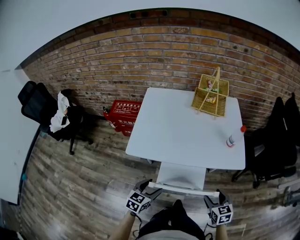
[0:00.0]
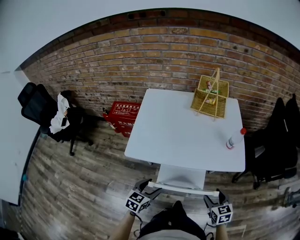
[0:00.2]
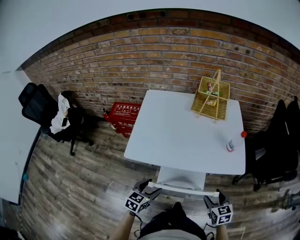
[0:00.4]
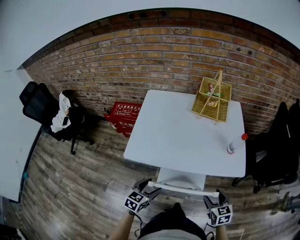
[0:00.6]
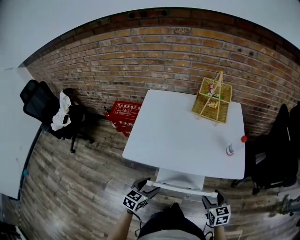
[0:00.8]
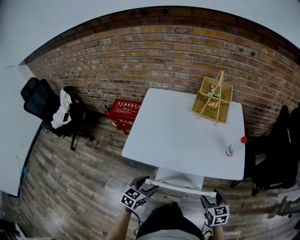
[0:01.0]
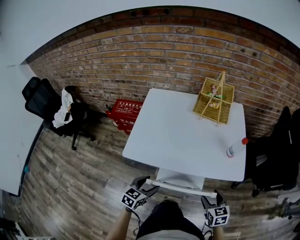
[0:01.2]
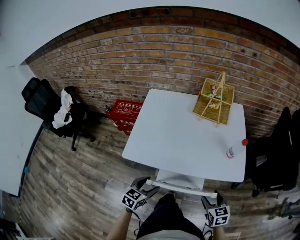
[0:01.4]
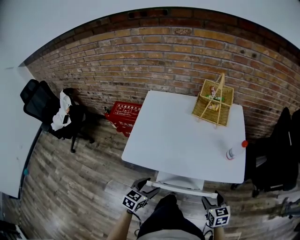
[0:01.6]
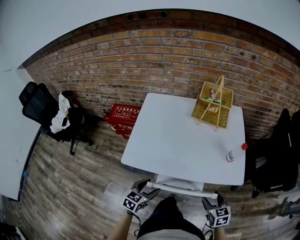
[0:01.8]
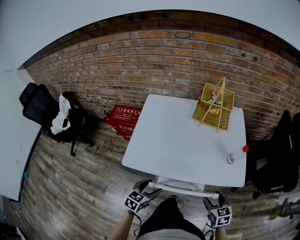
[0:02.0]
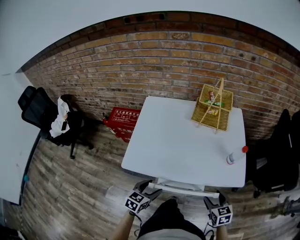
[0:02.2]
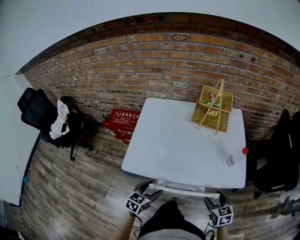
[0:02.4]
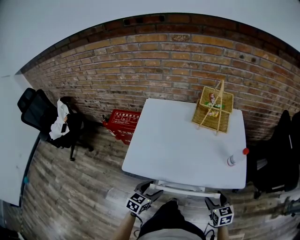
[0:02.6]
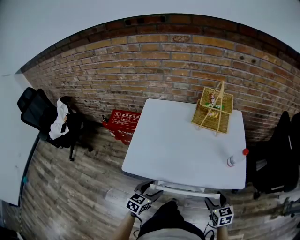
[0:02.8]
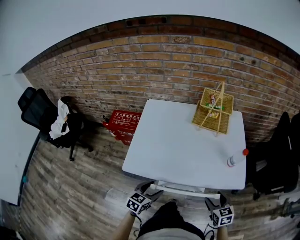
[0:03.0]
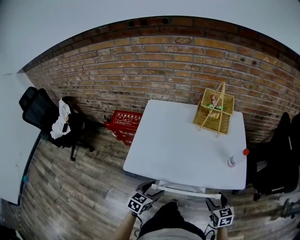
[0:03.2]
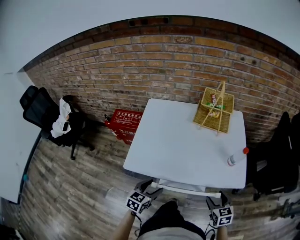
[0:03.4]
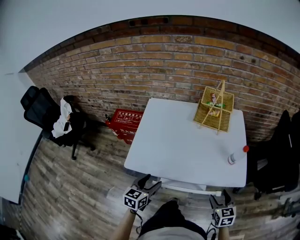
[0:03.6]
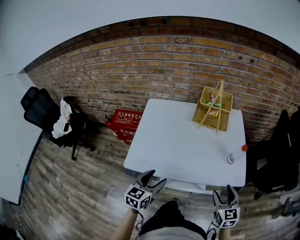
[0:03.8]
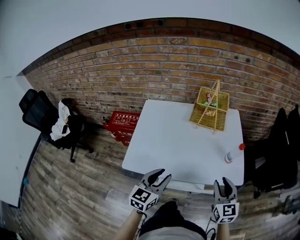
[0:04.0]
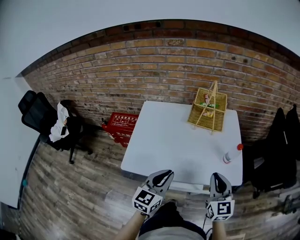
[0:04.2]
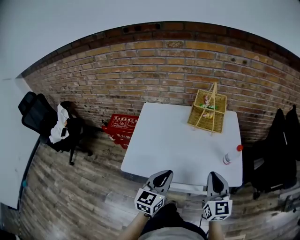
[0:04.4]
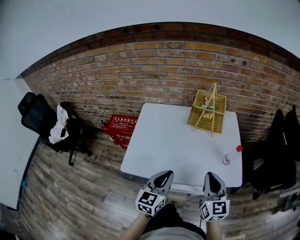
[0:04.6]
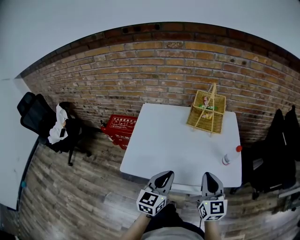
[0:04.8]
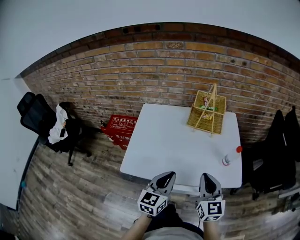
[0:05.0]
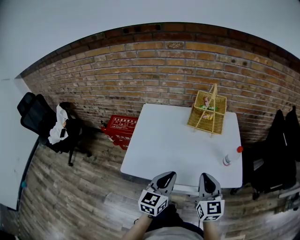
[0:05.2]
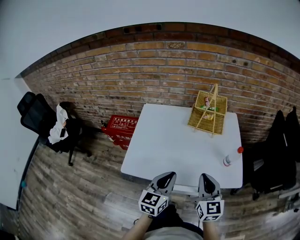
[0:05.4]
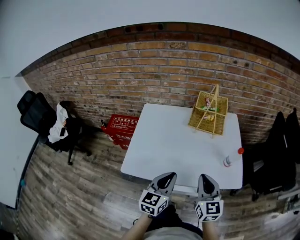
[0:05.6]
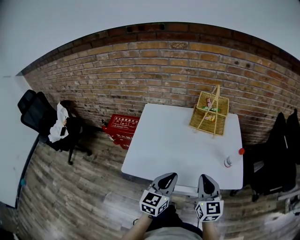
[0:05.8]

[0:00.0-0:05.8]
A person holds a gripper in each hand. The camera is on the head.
0:00.0 to 0:01.4: Both grippers travel together forward, about 5 cm.
0:01.4 to 0:02.8: There are only small adjustments of the grippers.
0:02.8 to 0:04.4: The grippers both shift upward by about 15 cm. The right gripper points its fingers roughly 30 degrees further upward, and closes, while the left gripper turns by some 30 degrees, and closes up.
0:04.4 to 0:05.8: The right gripper changes place by roughly 5 cm.

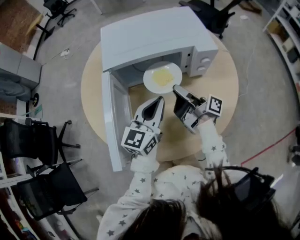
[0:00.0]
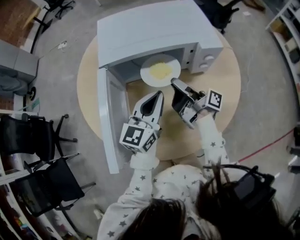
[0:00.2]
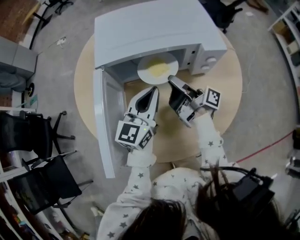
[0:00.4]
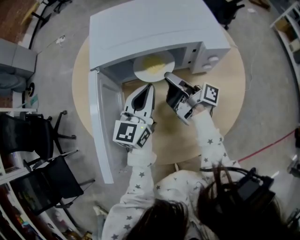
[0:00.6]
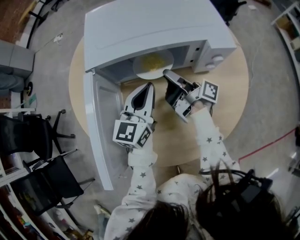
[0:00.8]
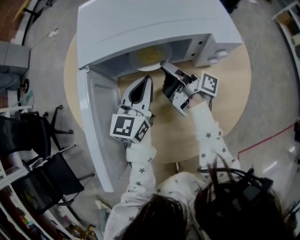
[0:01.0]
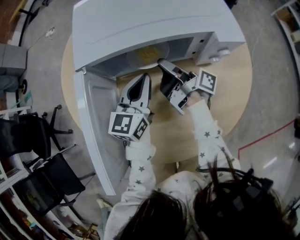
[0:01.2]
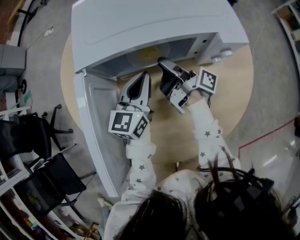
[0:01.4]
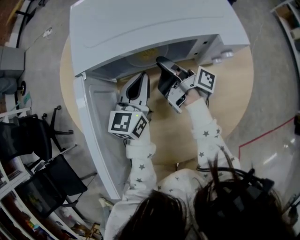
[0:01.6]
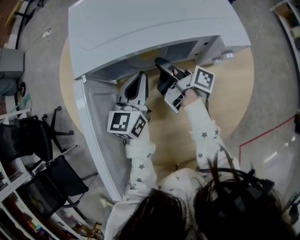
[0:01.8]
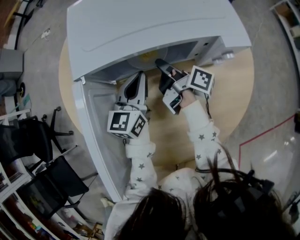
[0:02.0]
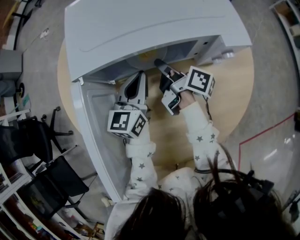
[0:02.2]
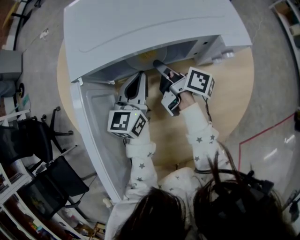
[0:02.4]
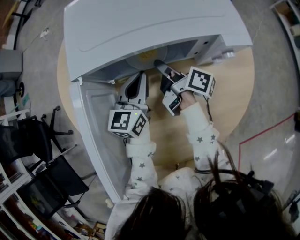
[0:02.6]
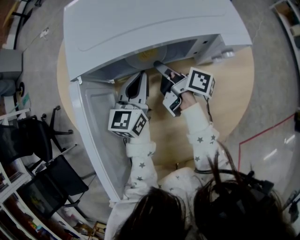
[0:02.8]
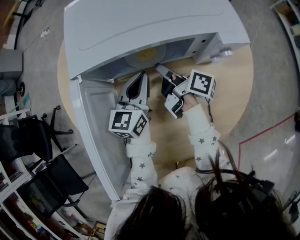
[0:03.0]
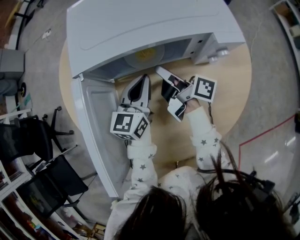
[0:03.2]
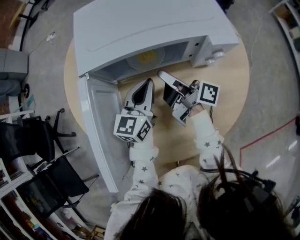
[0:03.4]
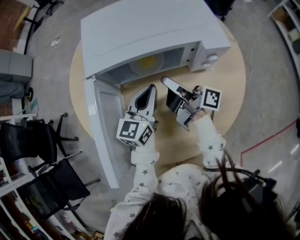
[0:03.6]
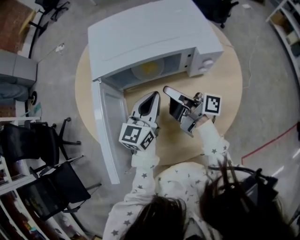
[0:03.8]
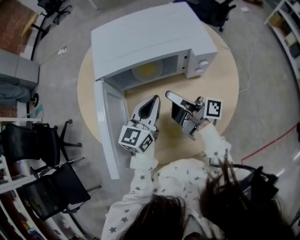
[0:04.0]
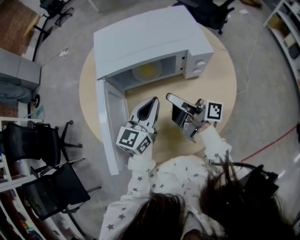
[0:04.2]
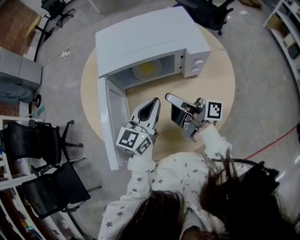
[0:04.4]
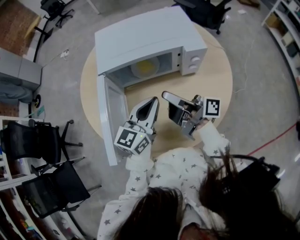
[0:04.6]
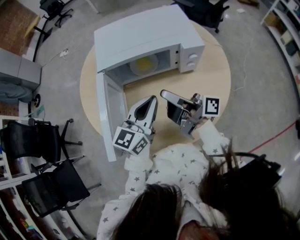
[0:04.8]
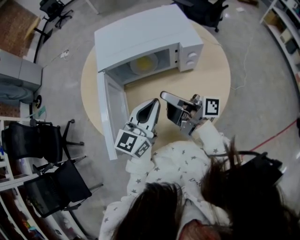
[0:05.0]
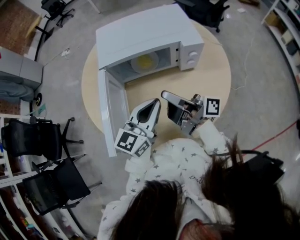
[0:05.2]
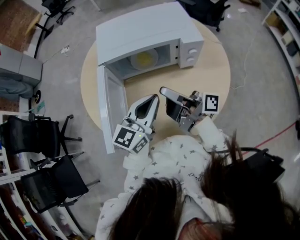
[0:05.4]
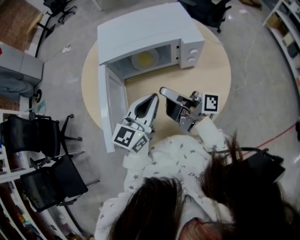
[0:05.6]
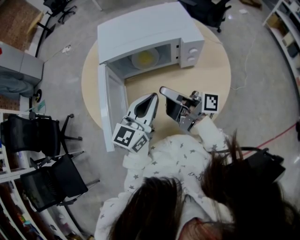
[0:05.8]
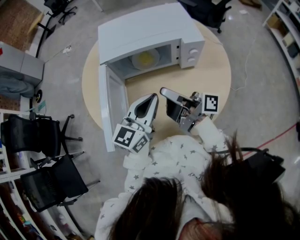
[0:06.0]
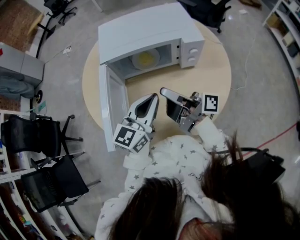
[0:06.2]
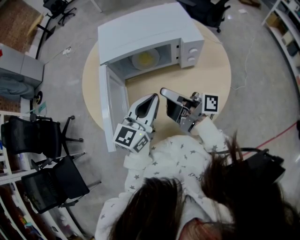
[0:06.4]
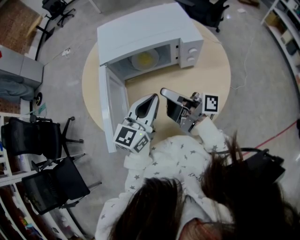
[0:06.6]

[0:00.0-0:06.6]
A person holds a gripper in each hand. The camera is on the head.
0:00.0 to 0:01.6: The left gripper ends up roughly 20 cm from where it was.
0:03.2 to 0:05.0: The left gripper ends up approximately 25 cm from where it was.

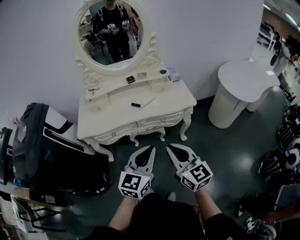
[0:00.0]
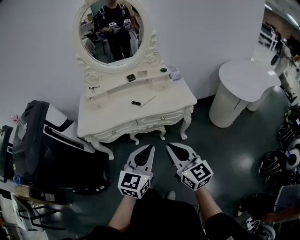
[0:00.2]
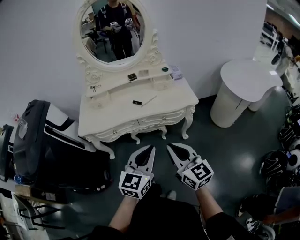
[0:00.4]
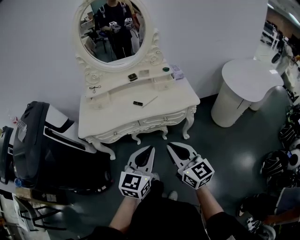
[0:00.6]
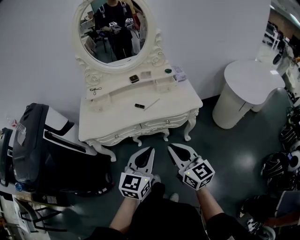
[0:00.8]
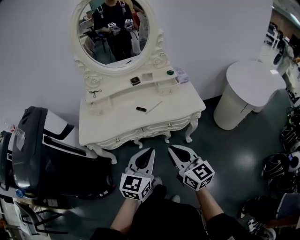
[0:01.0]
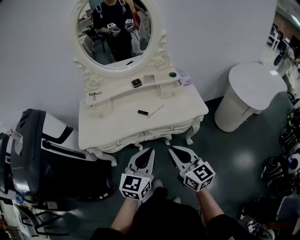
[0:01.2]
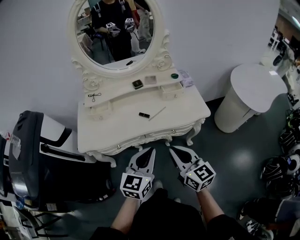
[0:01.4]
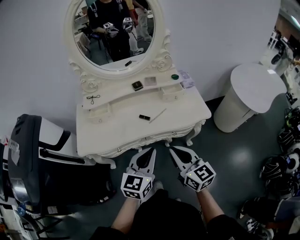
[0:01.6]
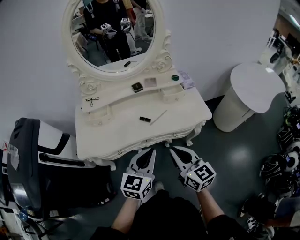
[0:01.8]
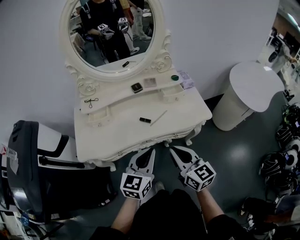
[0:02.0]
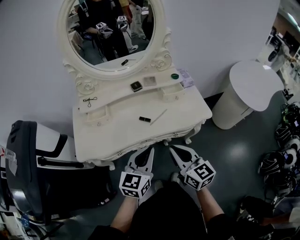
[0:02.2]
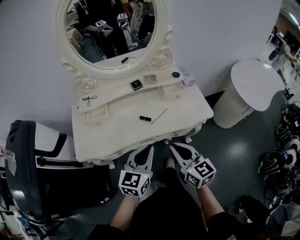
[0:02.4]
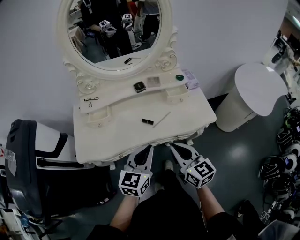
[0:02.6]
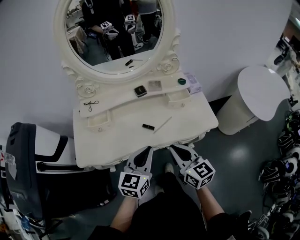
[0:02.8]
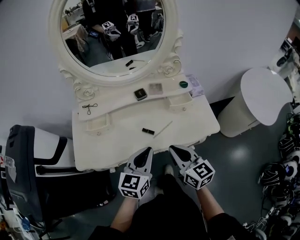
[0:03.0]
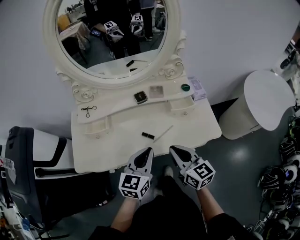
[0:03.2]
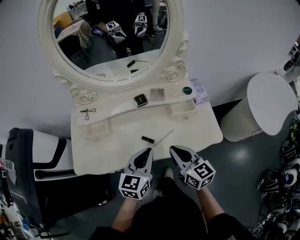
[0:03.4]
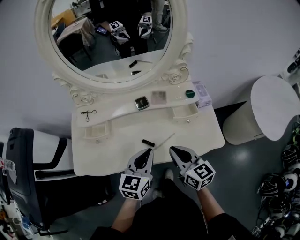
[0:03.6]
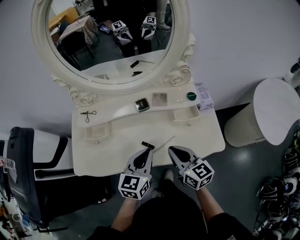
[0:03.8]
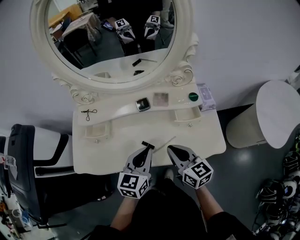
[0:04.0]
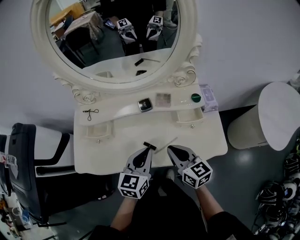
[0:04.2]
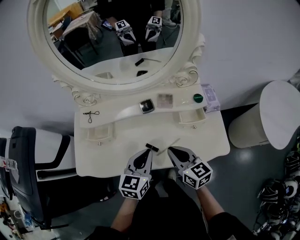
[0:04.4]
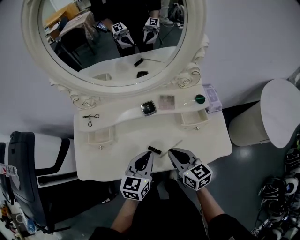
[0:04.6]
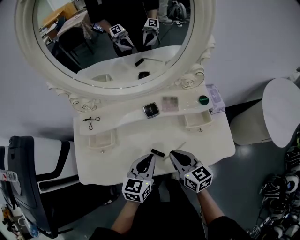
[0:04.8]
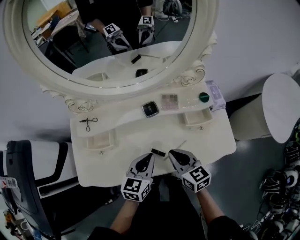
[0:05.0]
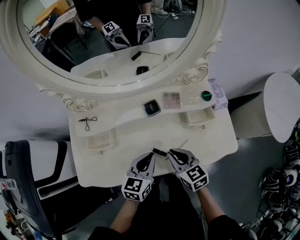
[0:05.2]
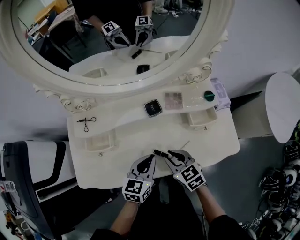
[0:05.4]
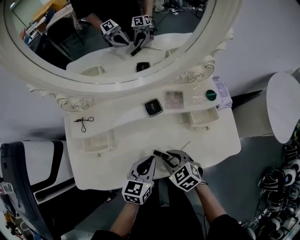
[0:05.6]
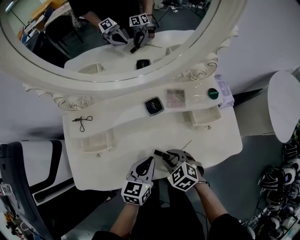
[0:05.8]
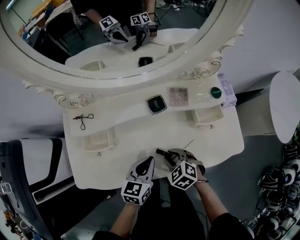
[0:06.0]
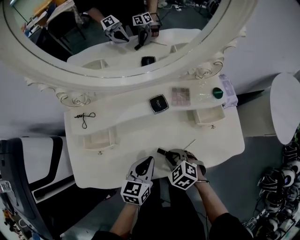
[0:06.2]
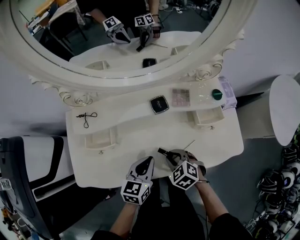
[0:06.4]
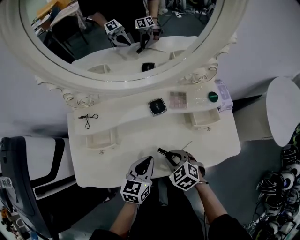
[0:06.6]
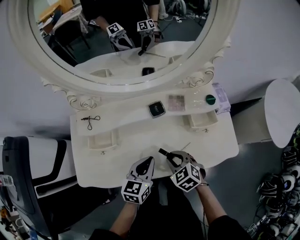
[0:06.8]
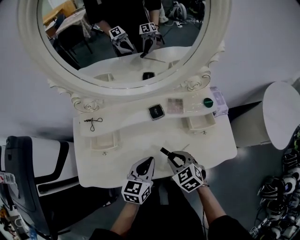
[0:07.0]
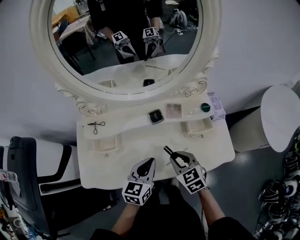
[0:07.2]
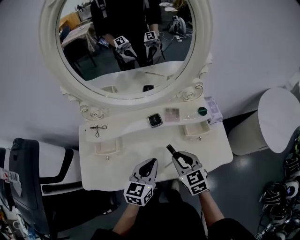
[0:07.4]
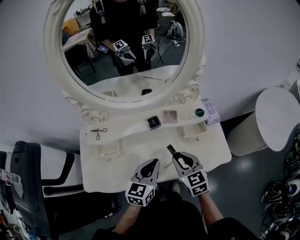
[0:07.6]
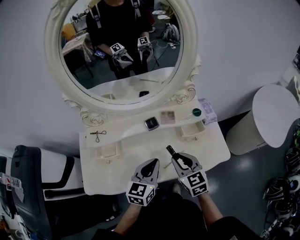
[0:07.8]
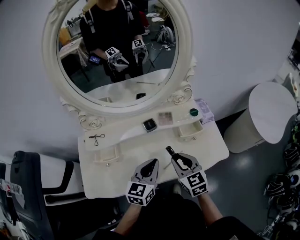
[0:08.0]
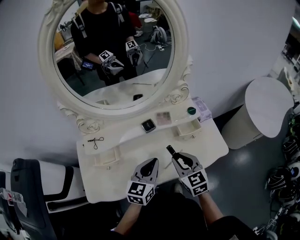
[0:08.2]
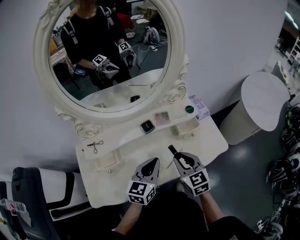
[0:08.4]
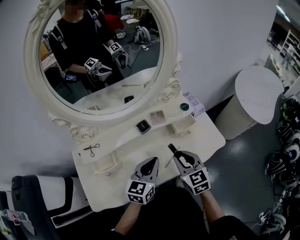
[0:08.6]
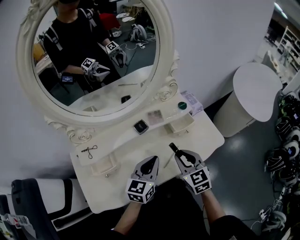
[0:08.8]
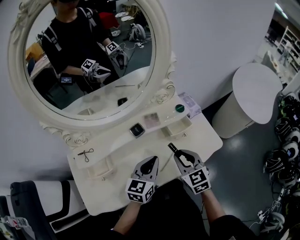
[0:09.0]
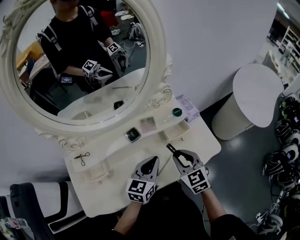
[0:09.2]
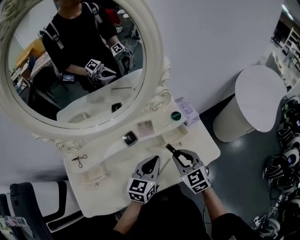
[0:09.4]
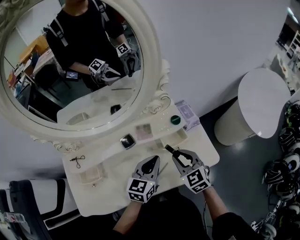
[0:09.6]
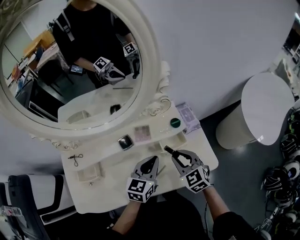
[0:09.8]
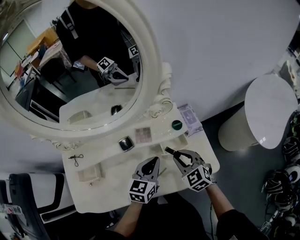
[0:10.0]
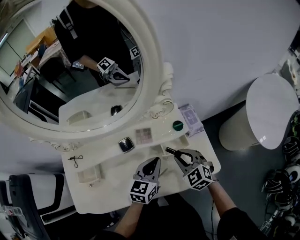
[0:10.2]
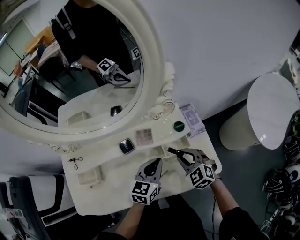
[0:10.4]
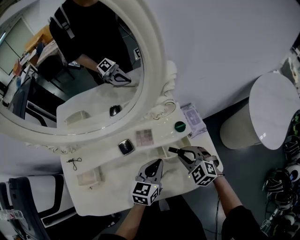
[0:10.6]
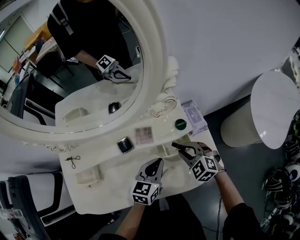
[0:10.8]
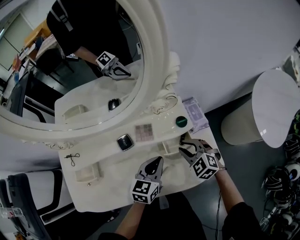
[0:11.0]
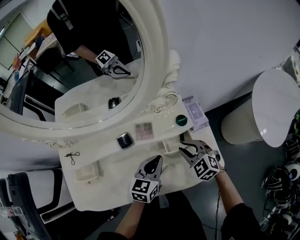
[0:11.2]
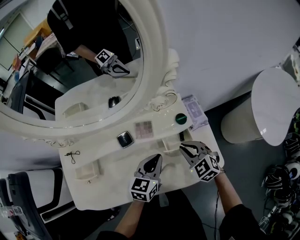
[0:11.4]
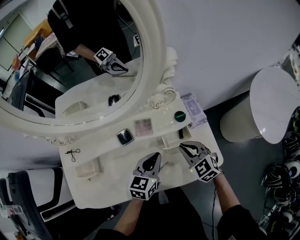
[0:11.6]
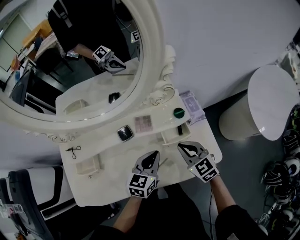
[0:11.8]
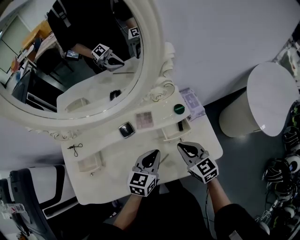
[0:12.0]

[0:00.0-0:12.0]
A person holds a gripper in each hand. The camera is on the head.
0:00.0 to 0:01.6: Both grippers move forward, some 20 cm.
0:01.6 to 0:03.0: The two grippers go roughly 15 cm forward.
0:03.0 to 0:04.4: Both grippers travel together forward, roughly 10 cm.
0:04.4 to 0:06.0: Both grippers travel together downward and to the left, about 15 cm. The right gripper tips its fingers downward by some 40 degrees, and opens up.
0:06.0 to 0:07.6: Both grippers travel together upward, approximately 15 cm. The right gripper points its fingers roughly 30 degrees further upward.
0:07.6 to 0:09.0: The grippers stay close to where they were, moving slightly.
0:09.0 to 0:10.4: The right gripper heads forward, to the right and downward, covering approximately 15 cm, and rotates roughly 30 degrees. Meanwhile the left gripper heads forward and to the right, covering some 15 cm.
0:10.4 to 0:12.0: The right gripper swivels approximately 30 degrees.
